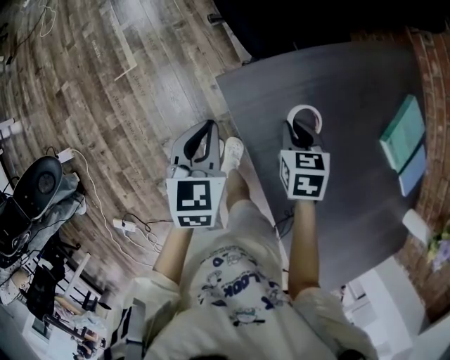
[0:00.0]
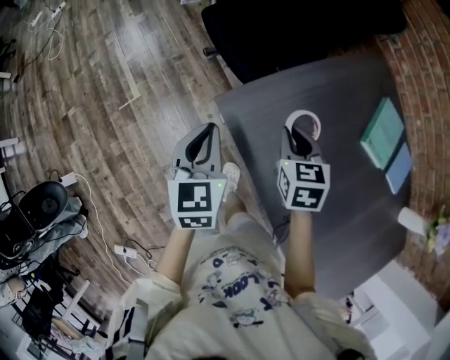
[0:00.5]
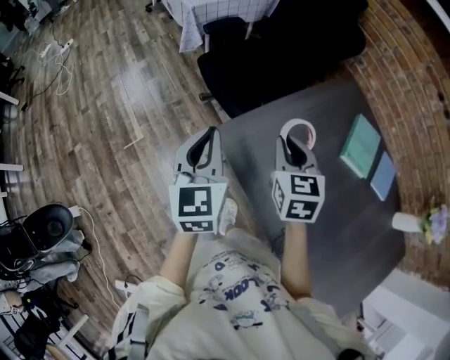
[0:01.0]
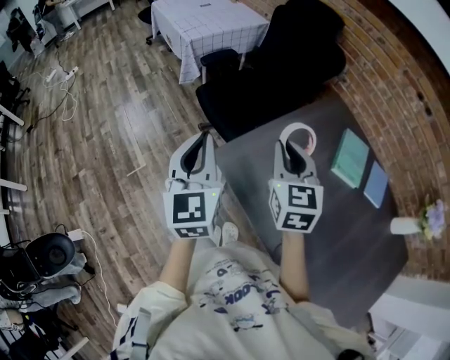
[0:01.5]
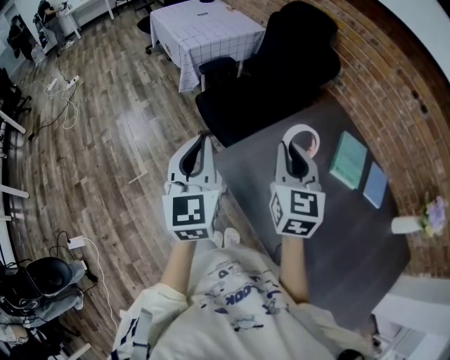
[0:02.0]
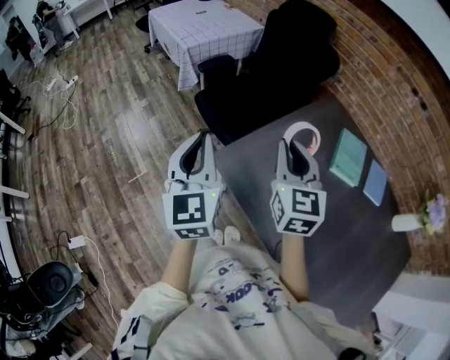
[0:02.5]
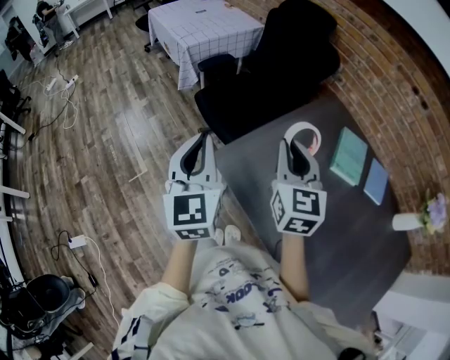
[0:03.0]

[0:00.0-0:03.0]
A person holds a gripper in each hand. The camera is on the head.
0.0 to 1.5 s: Both grippers travel together upward, some 30 cm. The right gripper tips its fingers upward by approximately 40 degrees, while the left gripper tips its fingers upward by roughly 30 degrees.
1.5 to 3.0 s: The grippers move only a little.

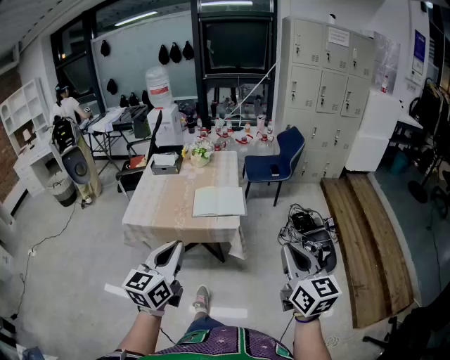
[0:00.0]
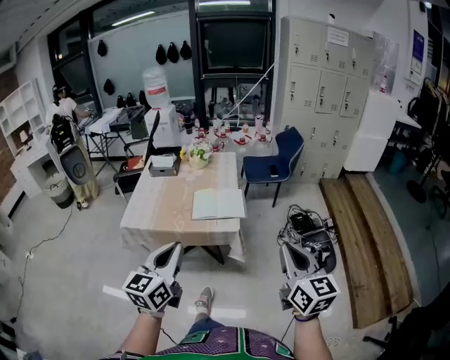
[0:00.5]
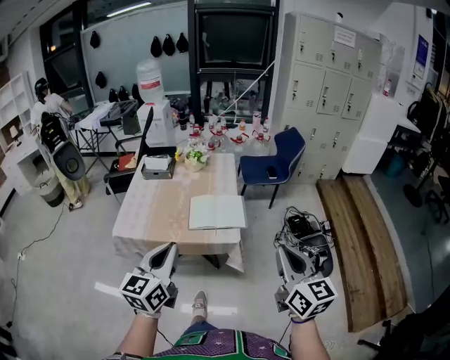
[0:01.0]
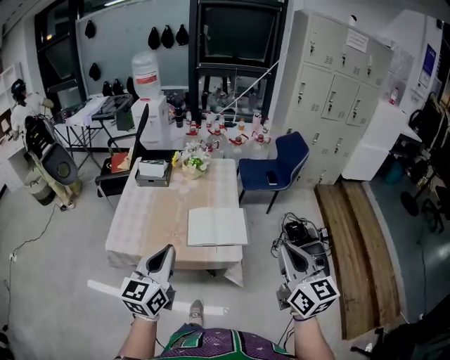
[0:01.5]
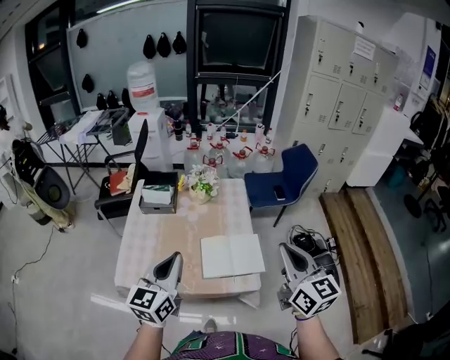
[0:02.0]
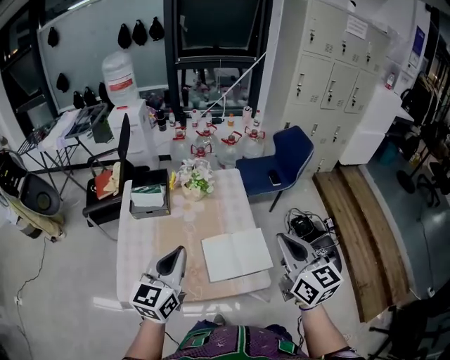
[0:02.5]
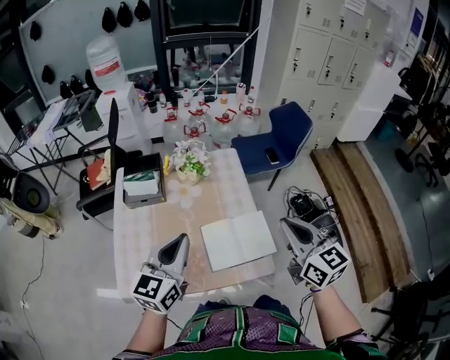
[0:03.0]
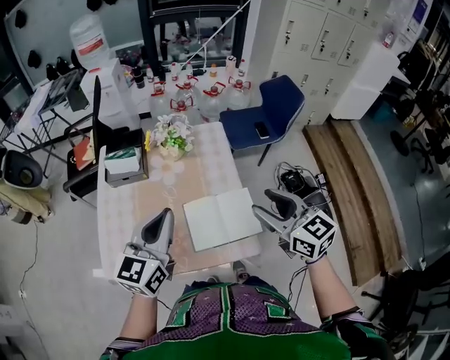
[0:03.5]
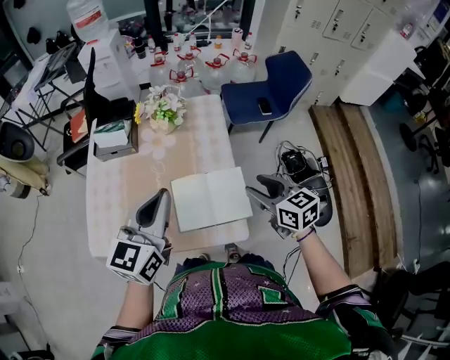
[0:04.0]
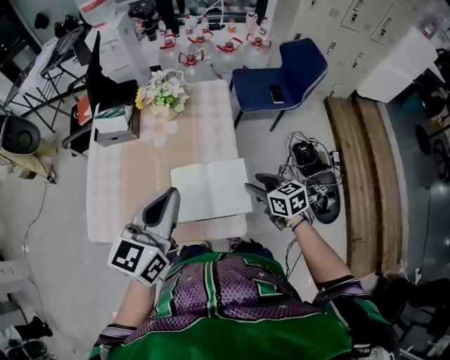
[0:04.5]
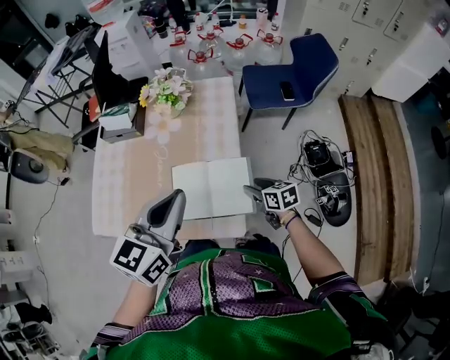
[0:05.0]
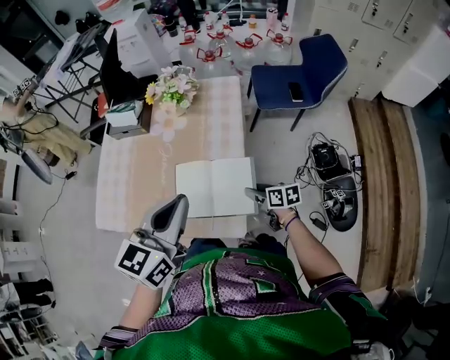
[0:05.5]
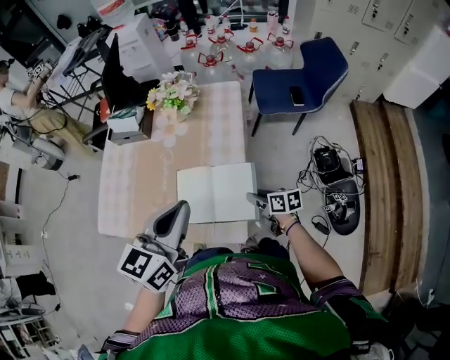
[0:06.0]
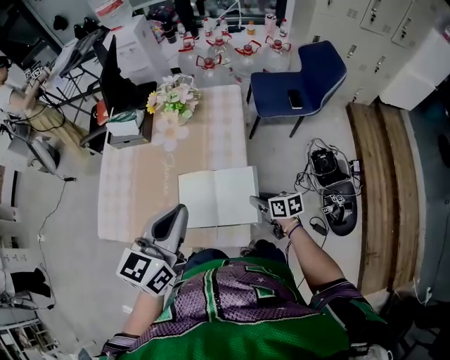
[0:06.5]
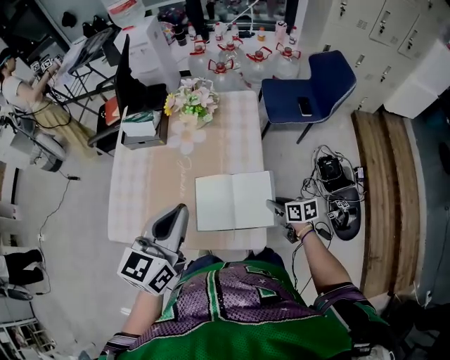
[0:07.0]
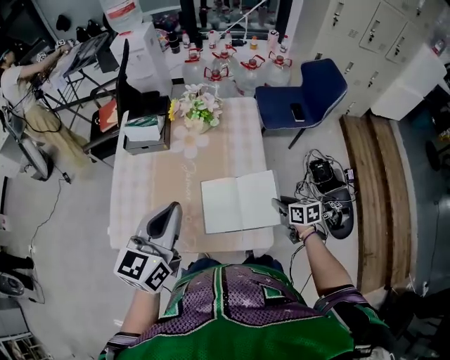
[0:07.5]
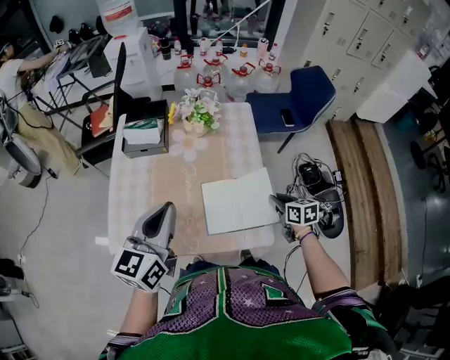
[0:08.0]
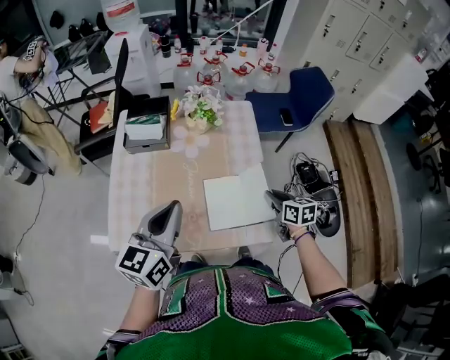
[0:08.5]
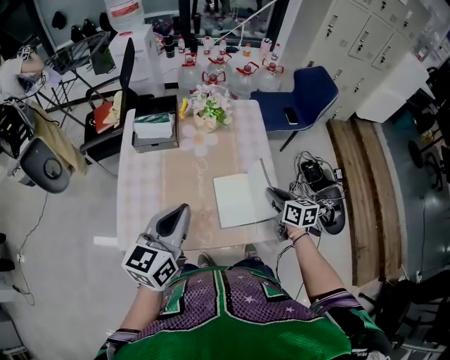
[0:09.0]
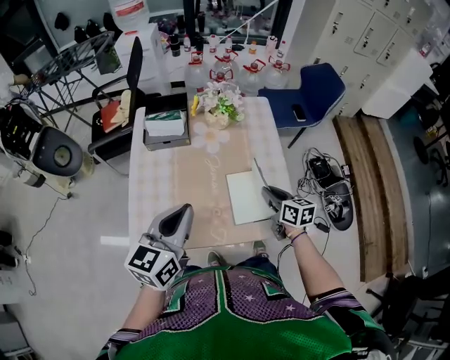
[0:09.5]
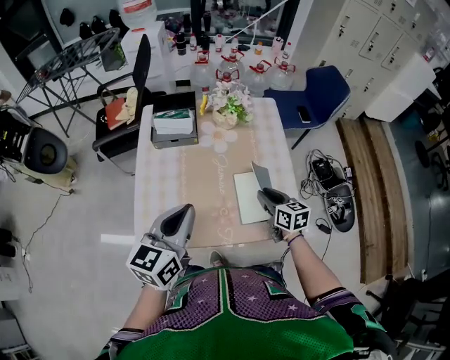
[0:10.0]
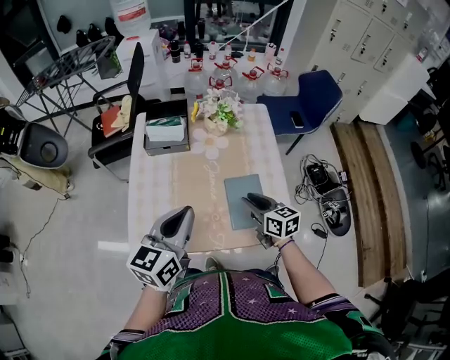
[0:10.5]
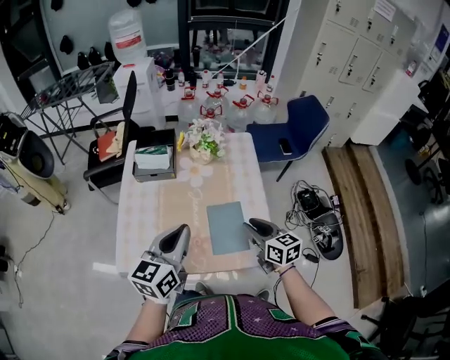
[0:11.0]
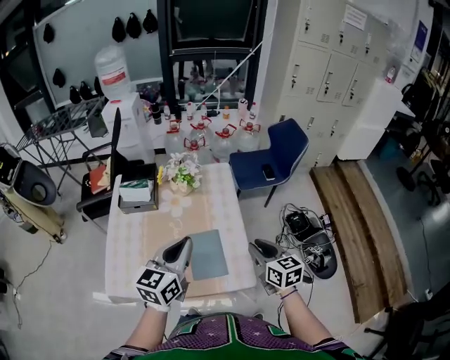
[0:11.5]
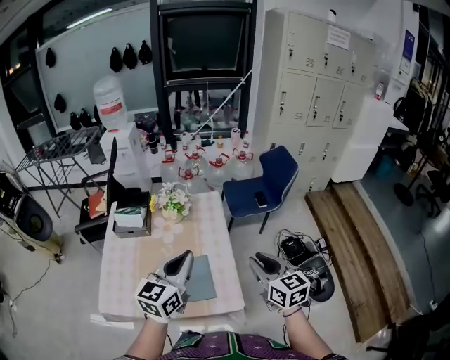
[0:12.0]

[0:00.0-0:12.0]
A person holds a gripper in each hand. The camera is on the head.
0.0 to 2.0 s: Both grippers travel together forward and to the left, about 40 cm.
2.0 to 4.0 s: The left gripper moves forward, to the right and downward, approximately 15 cm, while the right gripper is displaced downward and forward by some 25 cm, swivels about 30 degrees, and opens.
4.0 to 6.0 s: The left gripper heads to the right, covering some 10 cm. Meanwhile the right gripper moves downward, about 25 cm, and turns by approximately 30 degrees.
6.0 to 8.0 s: The left gripper is displaced to the left by some 20 cm. Meanwhile the right gripper shifts about 10 cm upward, changes its angle by some 30 degrees, and closes.
8.0 to 10.0 s: The right gripper heads to the left, covering approximately 20 cm; the left gripper is displaced to the left by approximately 10 cm.
10.0 to 12.0 s: The right gripper travels upward and to the right by roughly 30 cm, and rotates about 20 degrees, while the left gripper heads to the right, covering roughly 25 cm.

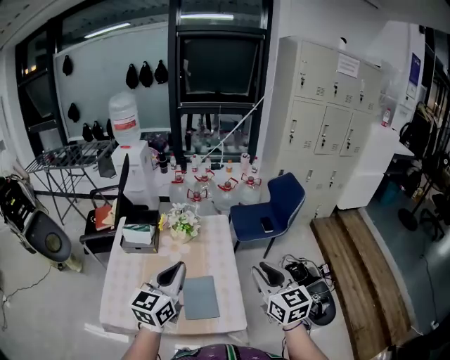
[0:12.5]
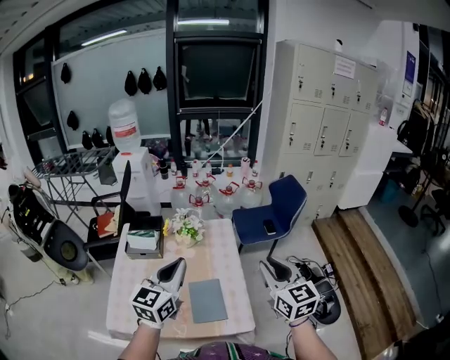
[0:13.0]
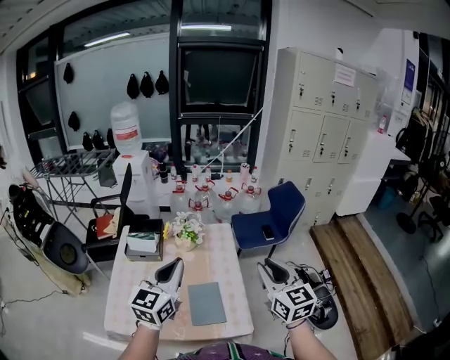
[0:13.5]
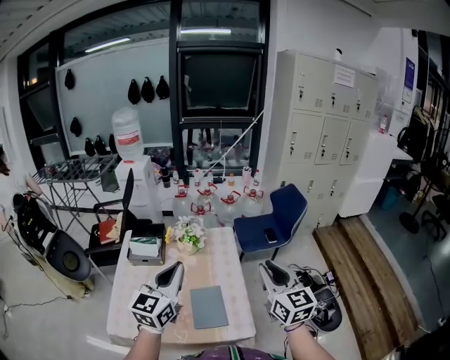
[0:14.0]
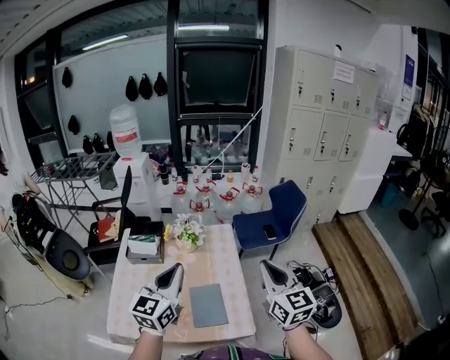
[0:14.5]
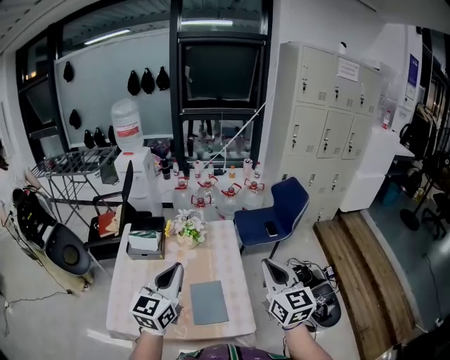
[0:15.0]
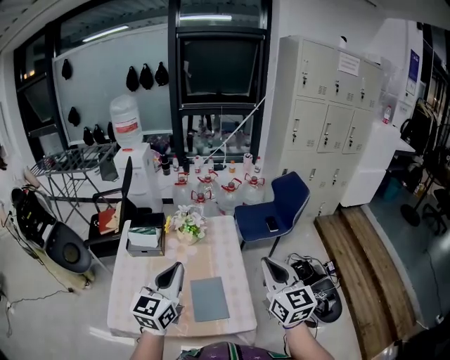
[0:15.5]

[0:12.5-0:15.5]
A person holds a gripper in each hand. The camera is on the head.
12.5 to 14.0 s: The left gripper changes place by about 5 cm.
14.0 to 15.5 s: The grippers stay close to where they were, moving slightly.

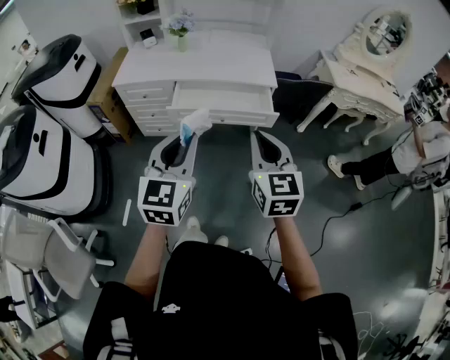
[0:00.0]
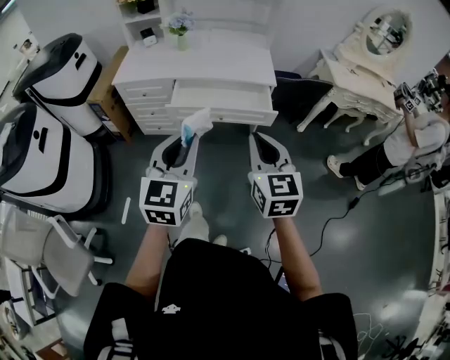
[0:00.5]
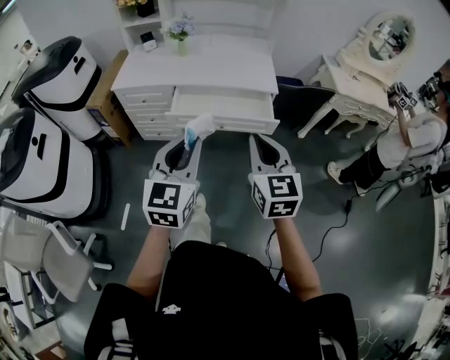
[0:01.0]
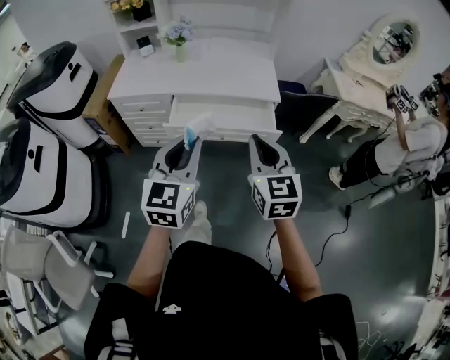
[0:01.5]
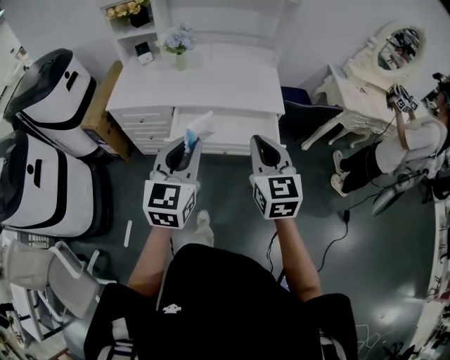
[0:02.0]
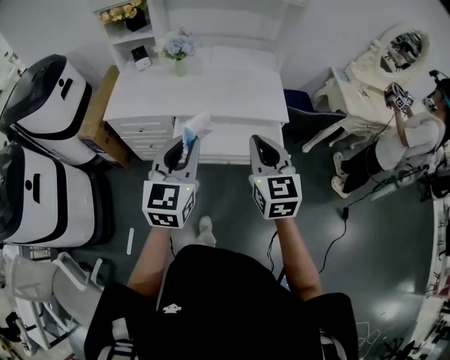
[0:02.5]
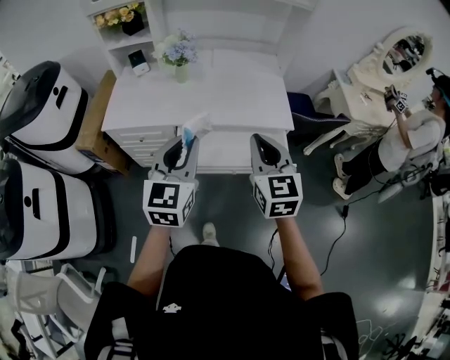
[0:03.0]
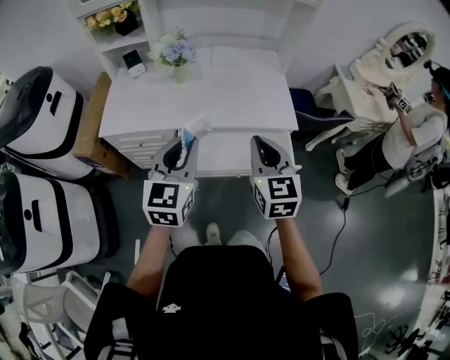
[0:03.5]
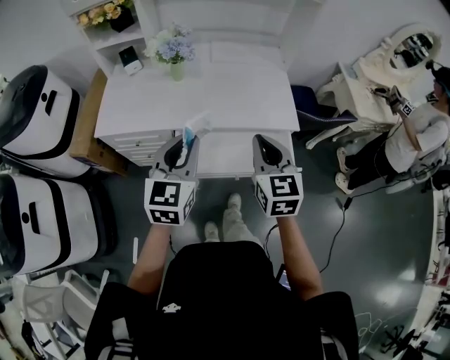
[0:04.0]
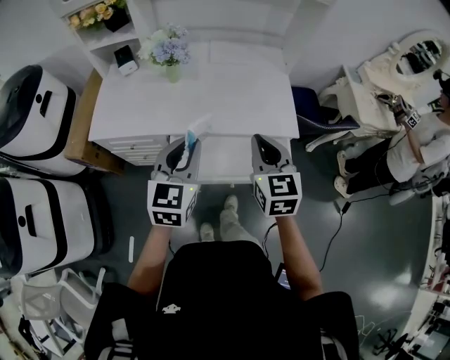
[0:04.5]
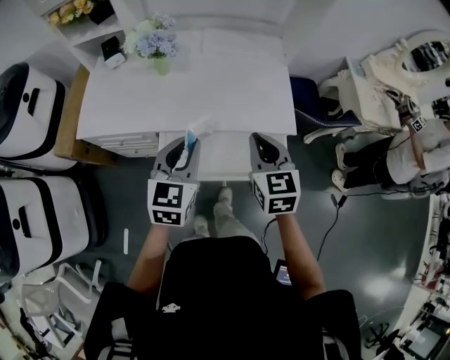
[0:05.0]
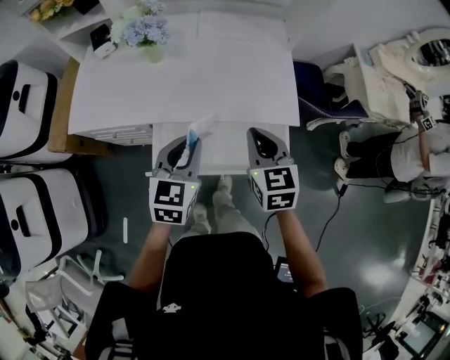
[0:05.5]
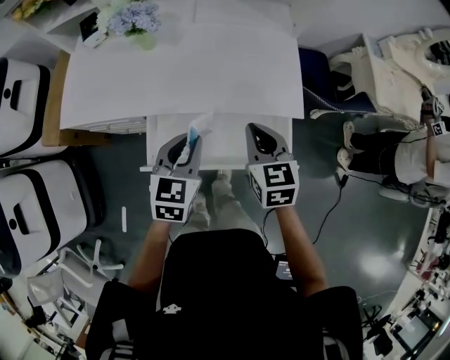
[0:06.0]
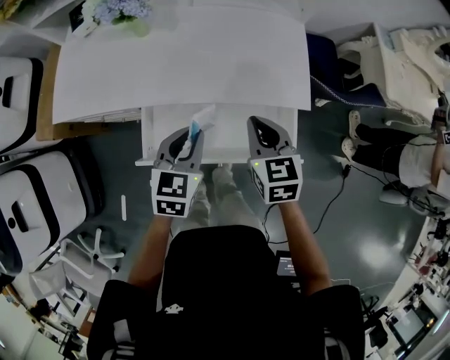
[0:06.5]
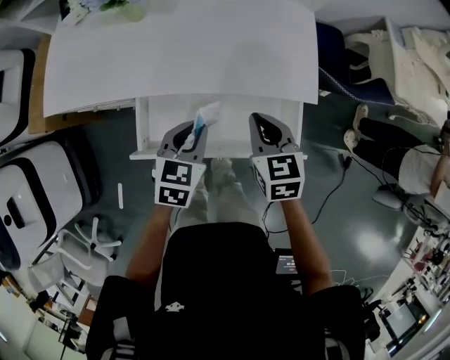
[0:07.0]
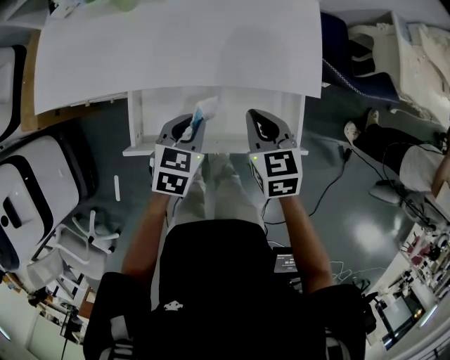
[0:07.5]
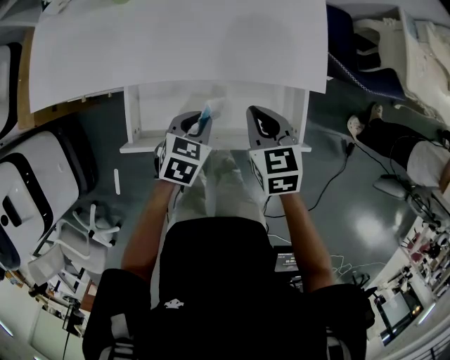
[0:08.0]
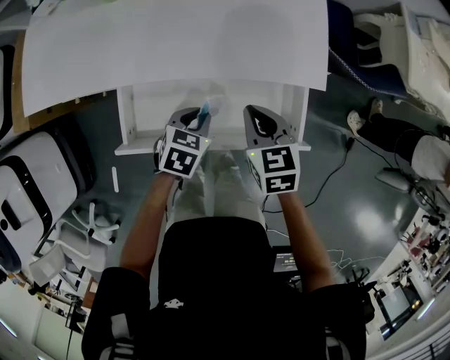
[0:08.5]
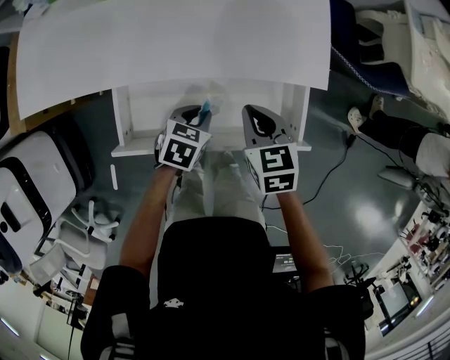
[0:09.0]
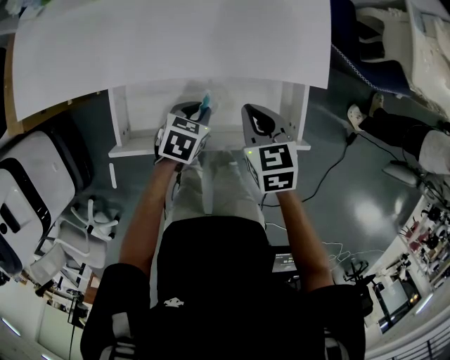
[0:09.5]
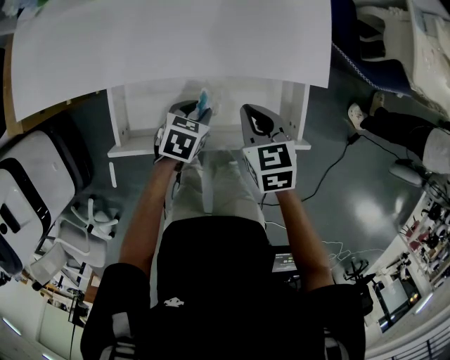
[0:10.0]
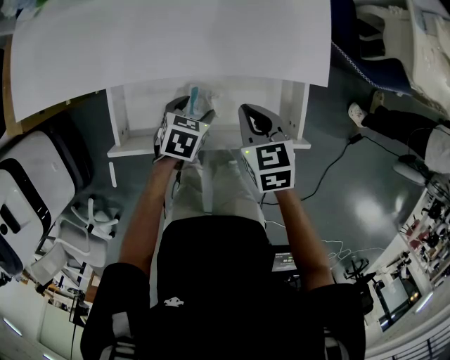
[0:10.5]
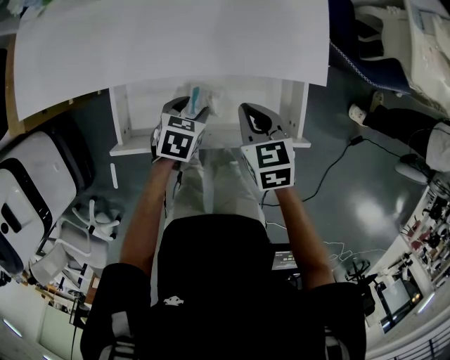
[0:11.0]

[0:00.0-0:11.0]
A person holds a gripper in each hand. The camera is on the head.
0.0 to 2.0 s: The two grippers go approximately 20 cm forward.
2.0 to 3.5 s: Both grippers travel together forward and to the left, roughly 20 cm.
3.5 to 5.5 s: The left gripper shifts some 20 cm downward, forward and to the right, while the right gripper goes roughly 20 cm forward, downward and to the right.
5.5 to 7.5 s: The grippers both shift downward by roughly 20 cm. The left gripper changes its angle by some 20 degrees.
7.5 to 9.0 s: The left gripper heads downward, covering roughly 10 cm. The right gripper shifts approximately 5 cm downward.
9.0 to 11.0 s: The left gripper opens.
